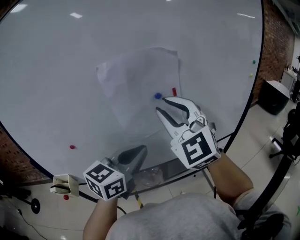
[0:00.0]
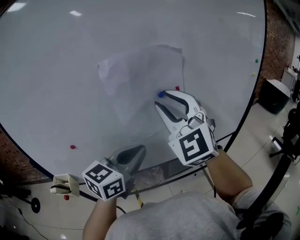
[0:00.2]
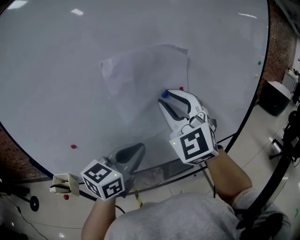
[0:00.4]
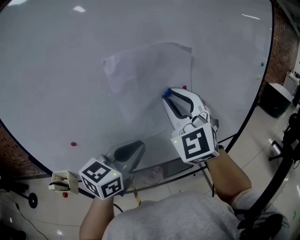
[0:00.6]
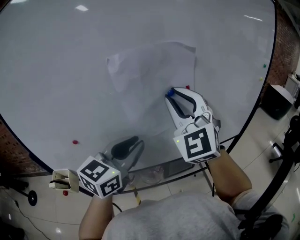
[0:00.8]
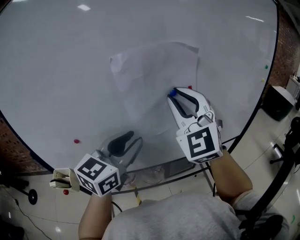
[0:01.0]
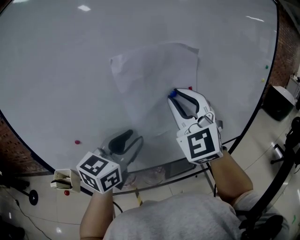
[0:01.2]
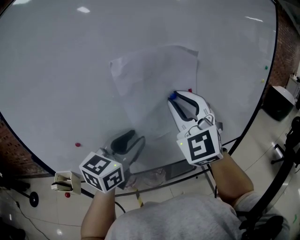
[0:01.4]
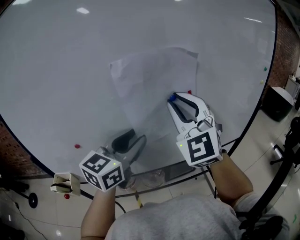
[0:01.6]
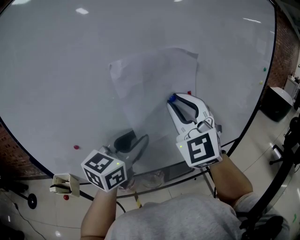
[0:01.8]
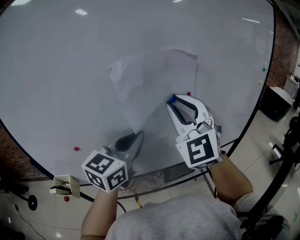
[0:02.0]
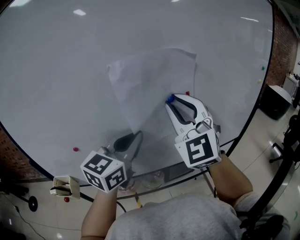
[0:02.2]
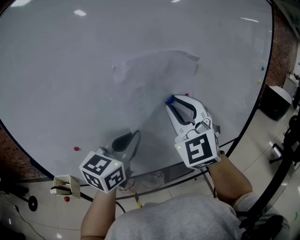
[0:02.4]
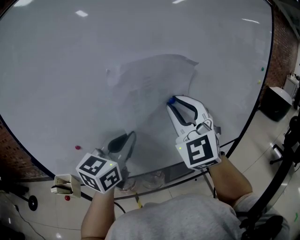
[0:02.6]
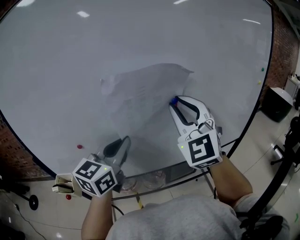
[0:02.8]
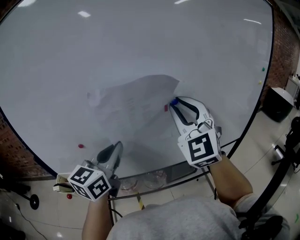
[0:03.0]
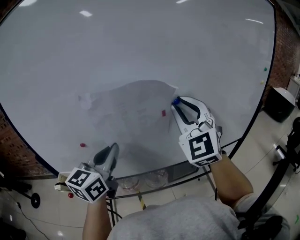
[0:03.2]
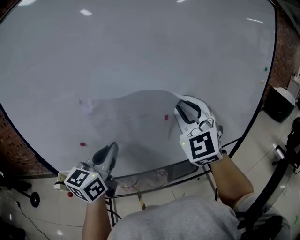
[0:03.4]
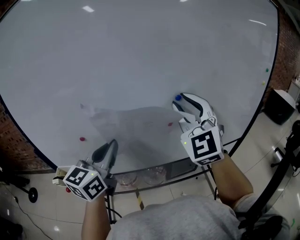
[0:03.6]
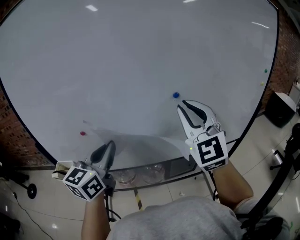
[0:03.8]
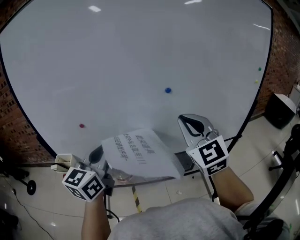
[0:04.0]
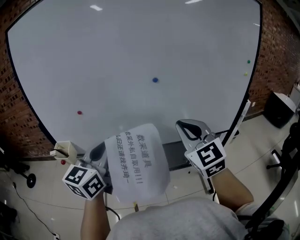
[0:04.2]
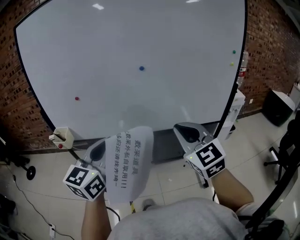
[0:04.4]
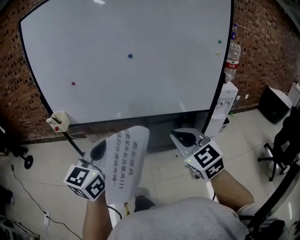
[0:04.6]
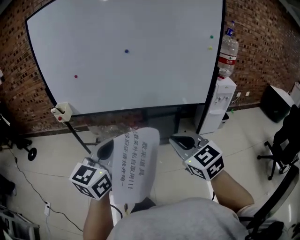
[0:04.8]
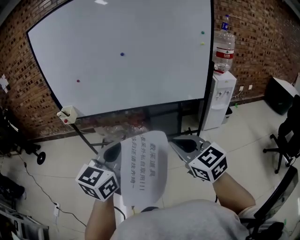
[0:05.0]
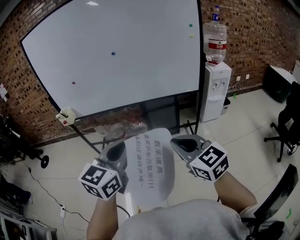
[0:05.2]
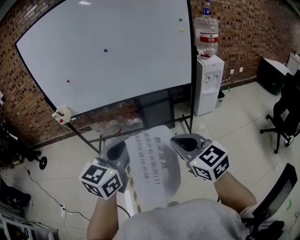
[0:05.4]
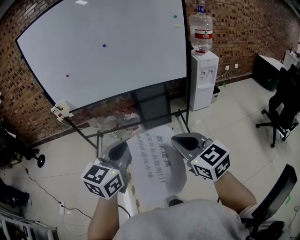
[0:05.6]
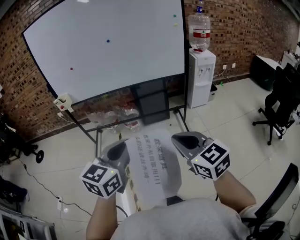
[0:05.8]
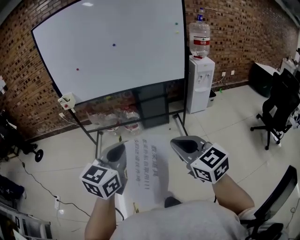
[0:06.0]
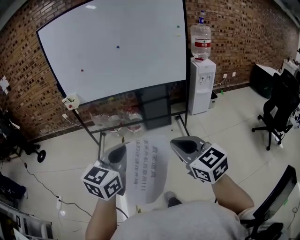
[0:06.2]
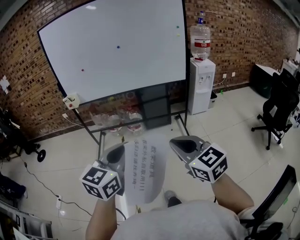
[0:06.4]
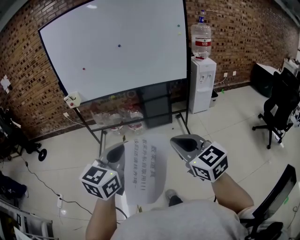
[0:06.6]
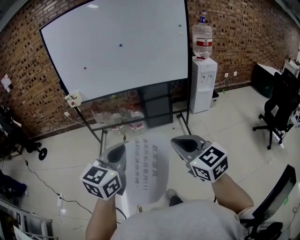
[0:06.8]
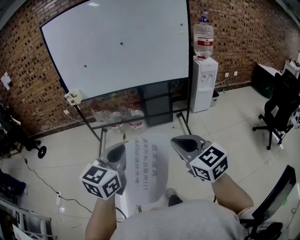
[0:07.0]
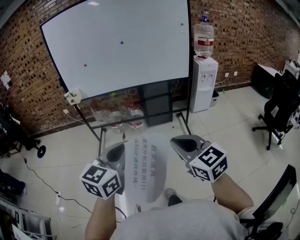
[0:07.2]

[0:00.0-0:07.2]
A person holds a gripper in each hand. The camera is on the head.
0:00.0 to 0:01.4: The left gripper travels to the left by approximately 5 cm, and opens.
0:01.4 to 0:02.8: The left gripper closes up.
0:02.8 to 0:04.4: The left gripper shifts some 25 cm backward. The right gripper is displaced backward, to the right and downward by approximately 30 cm, and changes its angle by roughly 30 degrees.
0:04.4 to 0:05.8: The pair of grippers is taken backward, about 40 cm. The right gripper rotates roughly 20 degrees.
0:05.8 to 0:07.2: Both grippers move backward and to the left, about 10 cm.

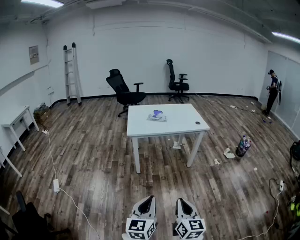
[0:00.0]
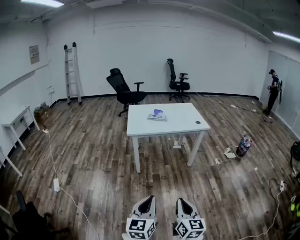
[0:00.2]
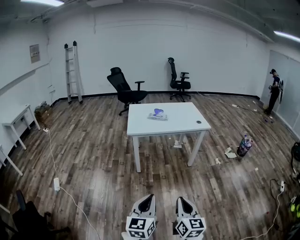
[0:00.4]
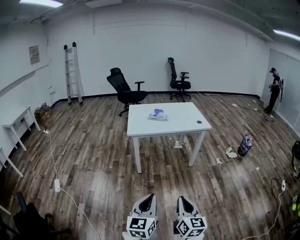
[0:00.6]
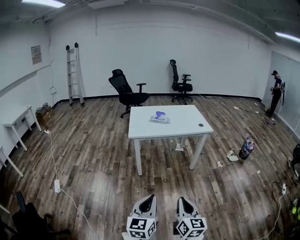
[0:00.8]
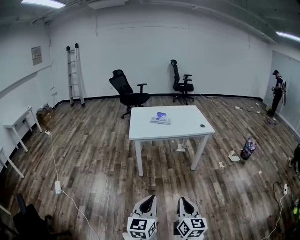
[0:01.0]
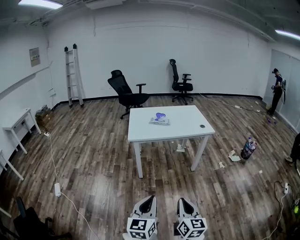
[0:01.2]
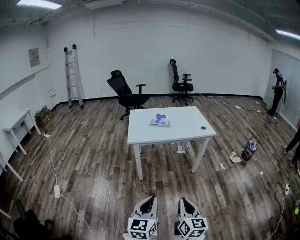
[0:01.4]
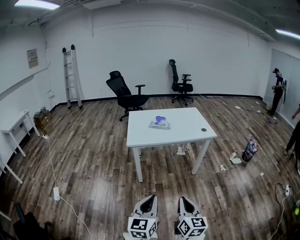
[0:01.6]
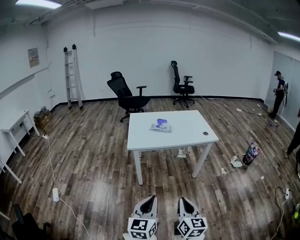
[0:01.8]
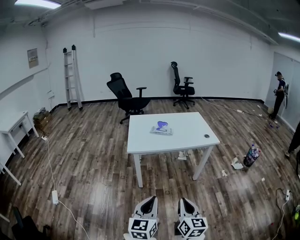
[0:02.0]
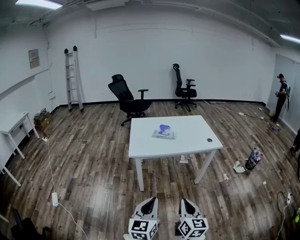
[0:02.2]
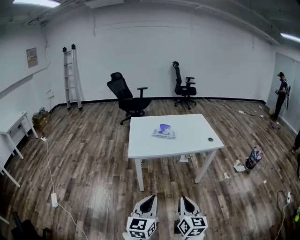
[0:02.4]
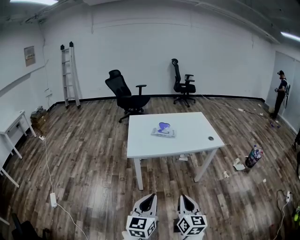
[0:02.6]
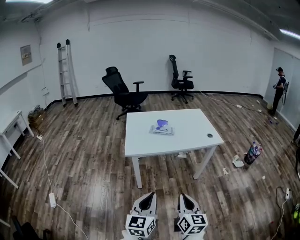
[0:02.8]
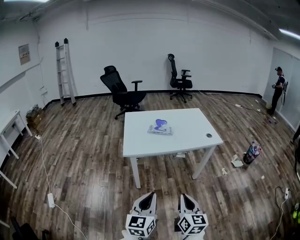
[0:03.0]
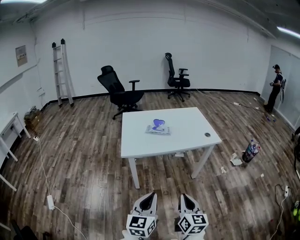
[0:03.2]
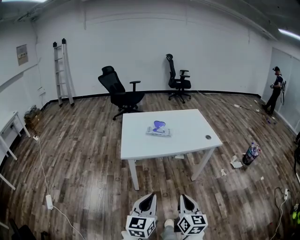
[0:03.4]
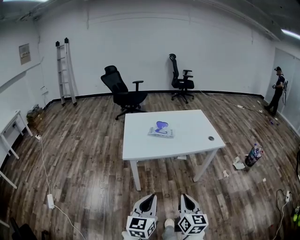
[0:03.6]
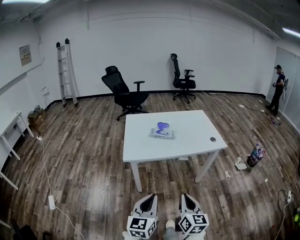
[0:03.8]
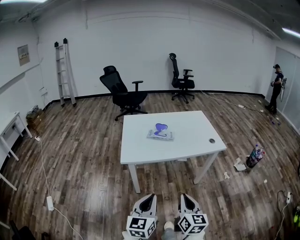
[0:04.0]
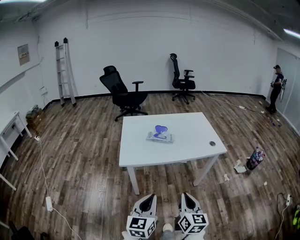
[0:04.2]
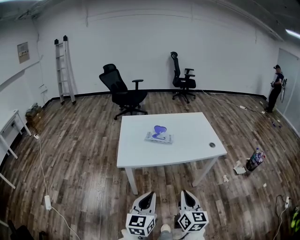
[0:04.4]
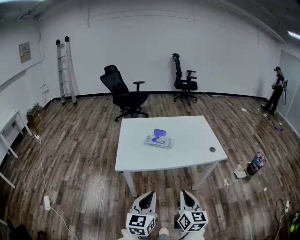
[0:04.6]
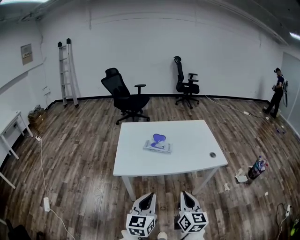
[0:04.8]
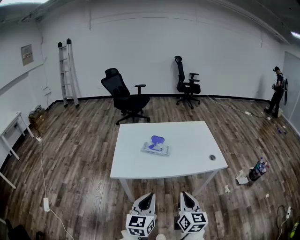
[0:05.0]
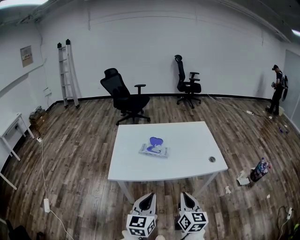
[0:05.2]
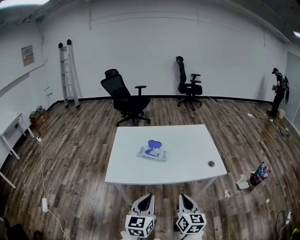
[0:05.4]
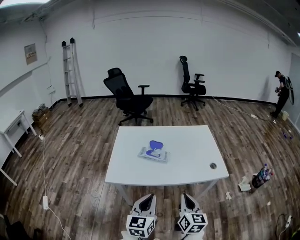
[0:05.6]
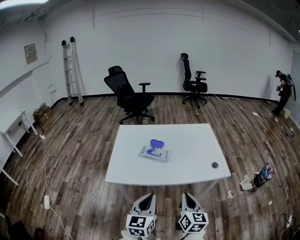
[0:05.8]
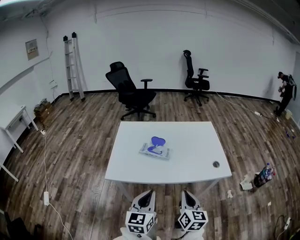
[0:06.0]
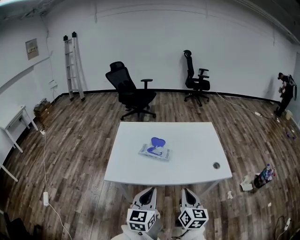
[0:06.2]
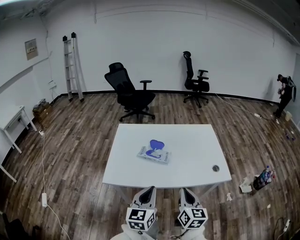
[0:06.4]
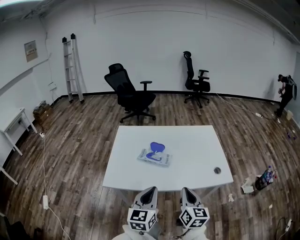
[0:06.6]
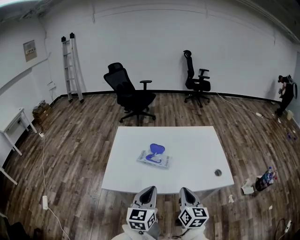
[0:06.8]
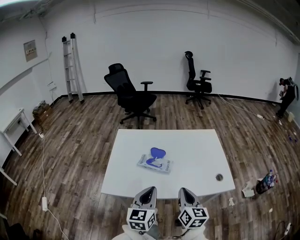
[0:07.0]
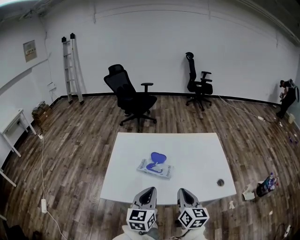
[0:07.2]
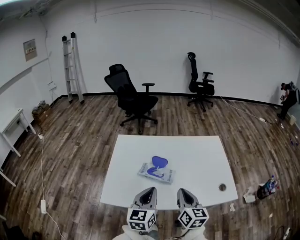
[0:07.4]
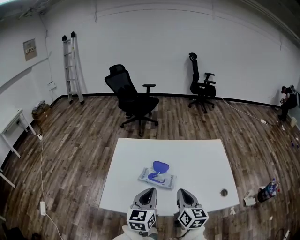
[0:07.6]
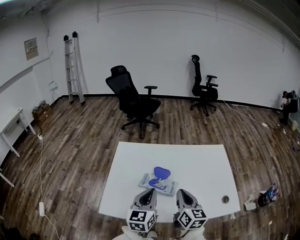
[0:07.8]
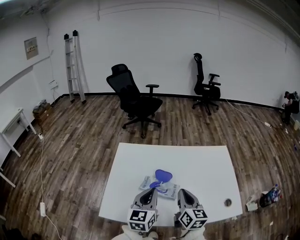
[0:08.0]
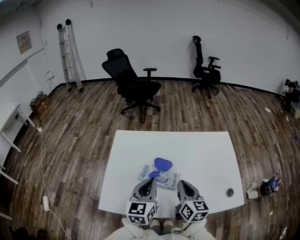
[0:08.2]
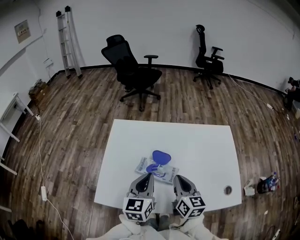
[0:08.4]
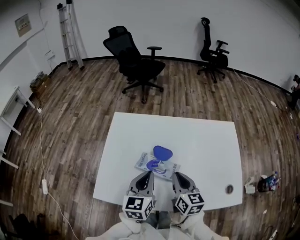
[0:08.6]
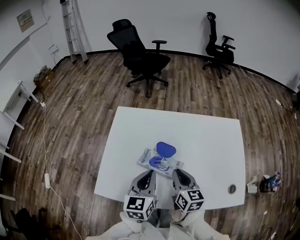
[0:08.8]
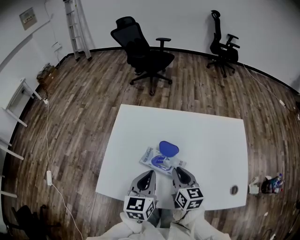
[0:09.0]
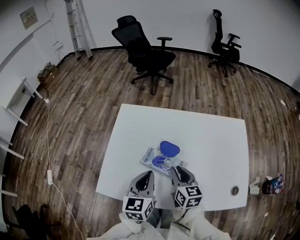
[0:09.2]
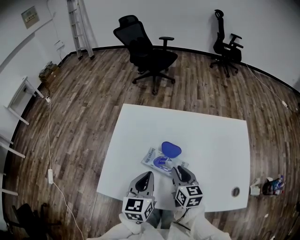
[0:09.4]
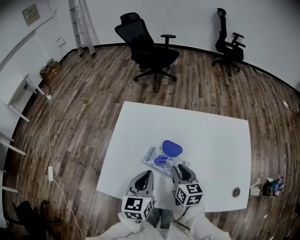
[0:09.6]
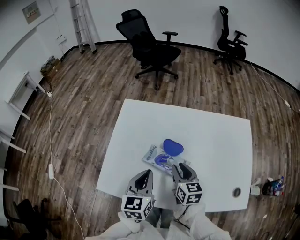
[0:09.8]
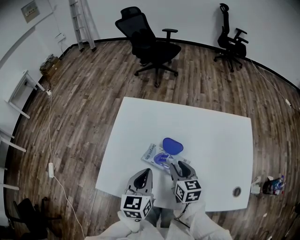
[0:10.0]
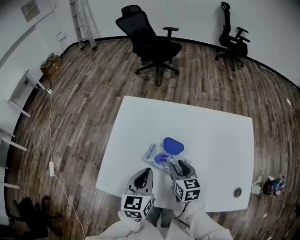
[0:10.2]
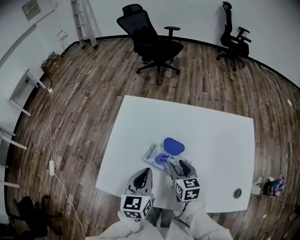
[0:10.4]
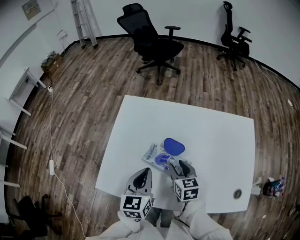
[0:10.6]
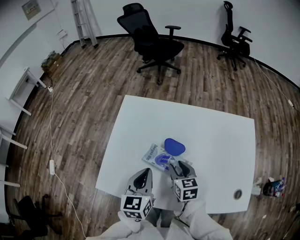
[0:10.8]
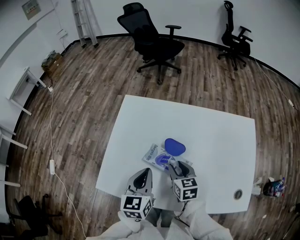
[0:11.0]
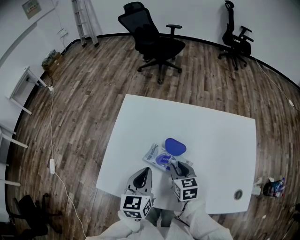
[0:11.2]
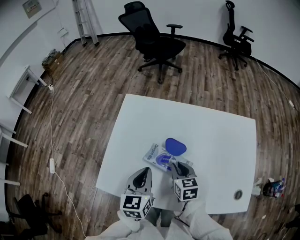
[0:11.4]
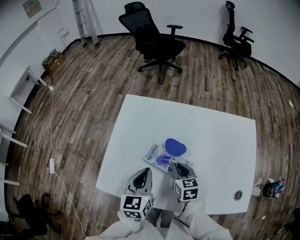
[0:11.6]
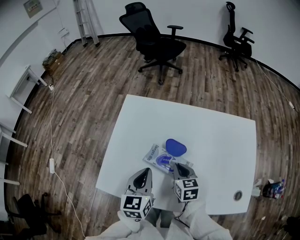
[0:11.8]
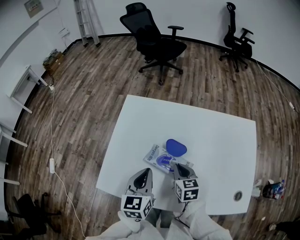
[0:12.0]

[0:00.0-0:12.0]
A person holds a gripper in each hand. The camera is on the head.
0:00.0 to 0:01.6: Both grippers move forward, some 15 cm.
0:01.6 to 0:03.0: The grippers both shift forward by approximately 15 cm.
0:03.0 to 0:04.4: Both grippers move forward, roughly 15 cm.
0:04.4 to 0:06.0: The two grippers go about 20 cm forward and to the right.
0:06.0 to 0:07.6: Both grippers travel together forward, roughly 20 cm.
0:07.6 to 0:09.0: The two grippers go some 10 cm forward and downward.
0:09.0 to 0:10.4: The right gripper heads downward, covering approximately 5 cm, and opens.
0:10.4 to 0:12.0: The right gripper closes.

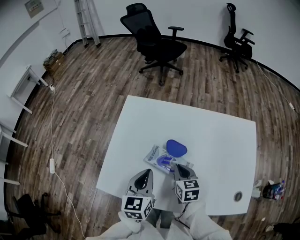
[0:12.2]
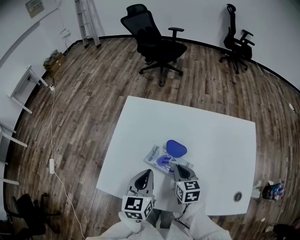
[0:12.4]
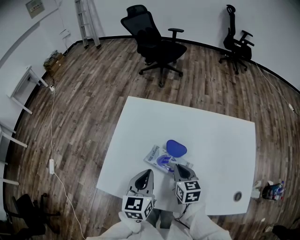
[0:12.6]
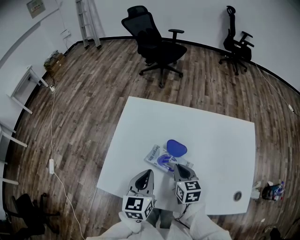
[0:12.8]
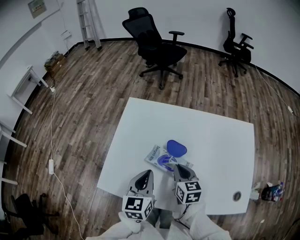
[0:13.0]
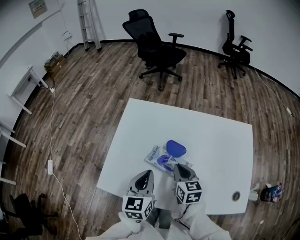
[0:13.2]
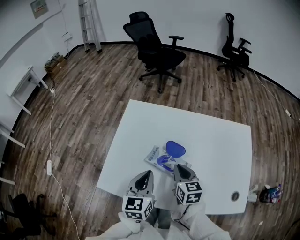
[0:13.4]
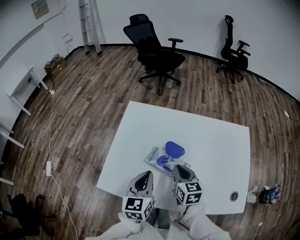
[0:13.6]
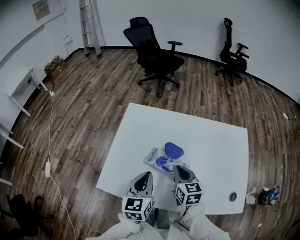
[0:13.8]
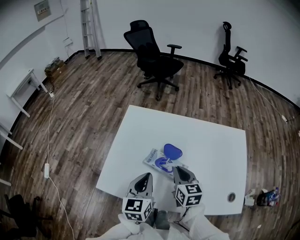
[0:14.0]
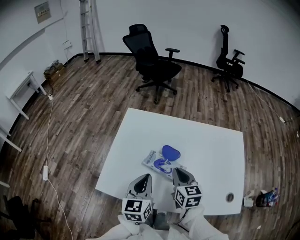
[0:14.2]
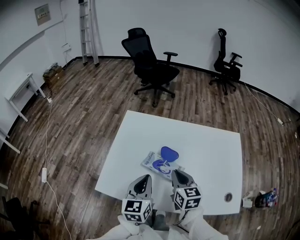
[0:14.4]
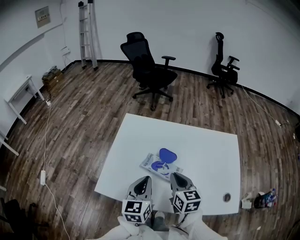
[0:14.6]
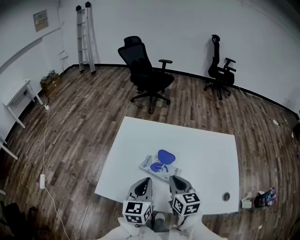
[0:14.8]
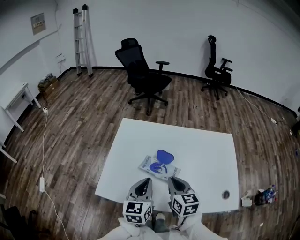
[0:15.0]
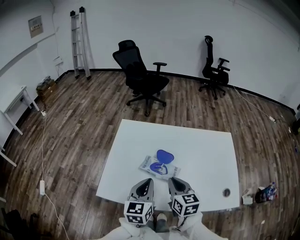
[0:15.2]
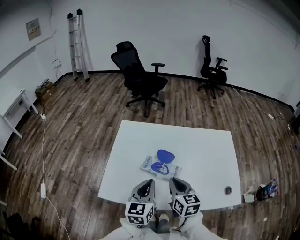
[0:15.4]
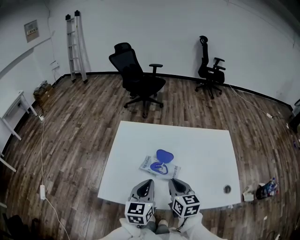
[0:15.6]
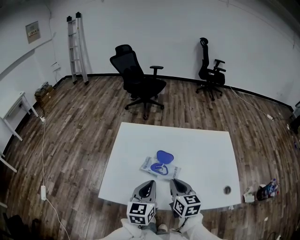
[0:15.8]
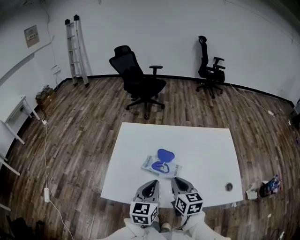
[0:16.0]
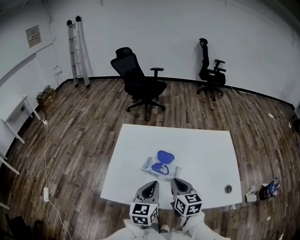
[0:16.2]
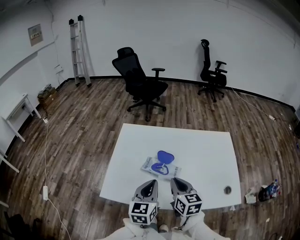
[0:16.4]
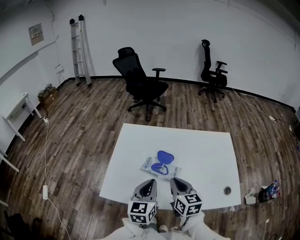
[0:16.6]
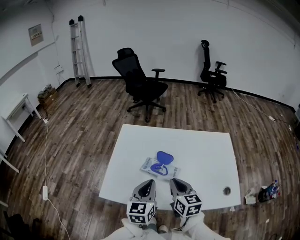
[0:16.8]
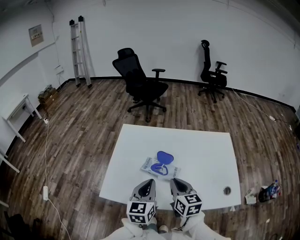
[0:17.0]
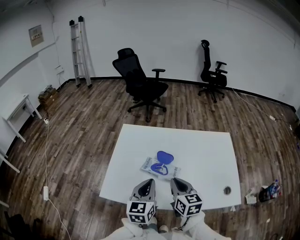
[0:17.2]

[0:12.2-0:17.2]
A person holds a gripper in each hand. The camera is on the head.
0:12.2 to 0:13.8: The right gripper heads upward, covering some 5 cm.
0:13.8 to 0:15.6: The left gripper changes place by some 5 cm. The right gripper travels backward and upward by approximately 10 cm.
0:15.6 to 0:17.2: The grippers stay close to where they were, moving slightly.
